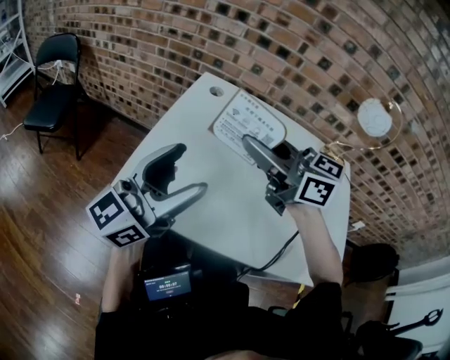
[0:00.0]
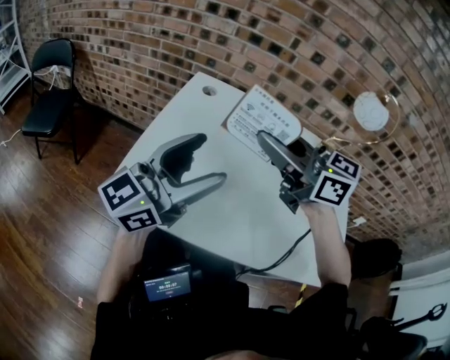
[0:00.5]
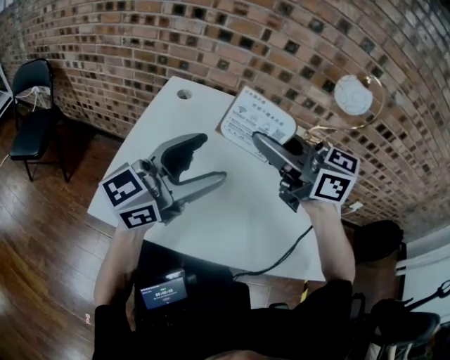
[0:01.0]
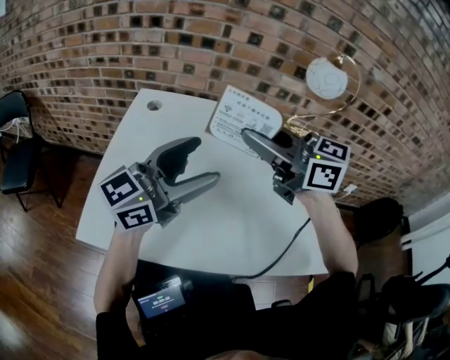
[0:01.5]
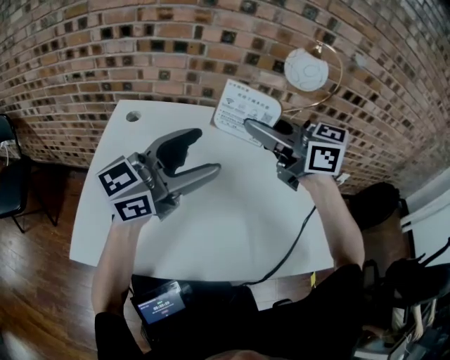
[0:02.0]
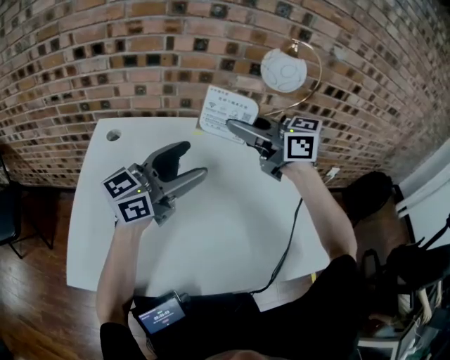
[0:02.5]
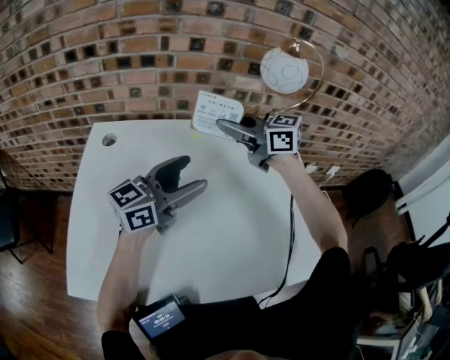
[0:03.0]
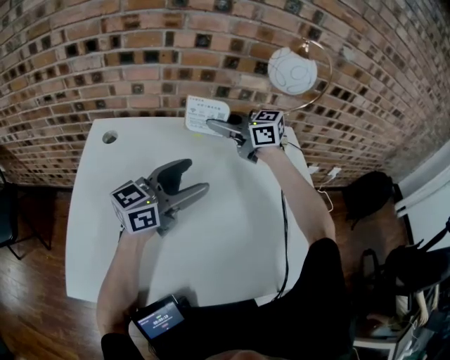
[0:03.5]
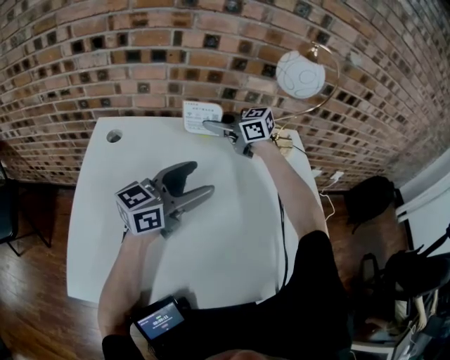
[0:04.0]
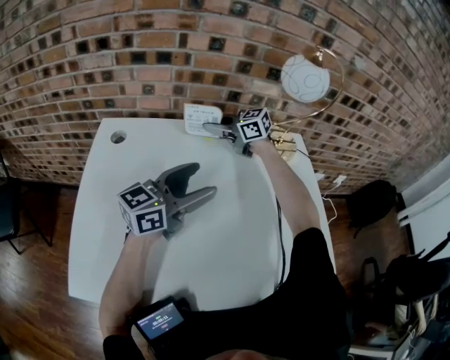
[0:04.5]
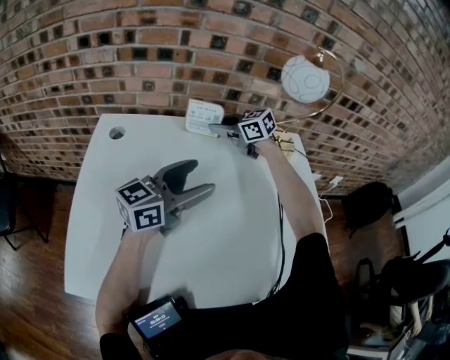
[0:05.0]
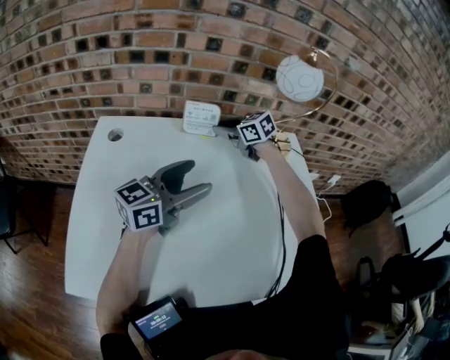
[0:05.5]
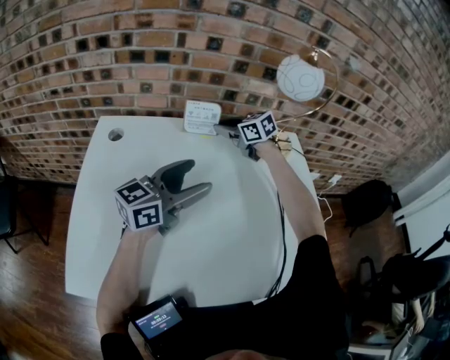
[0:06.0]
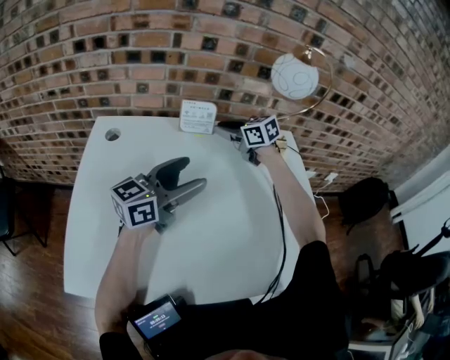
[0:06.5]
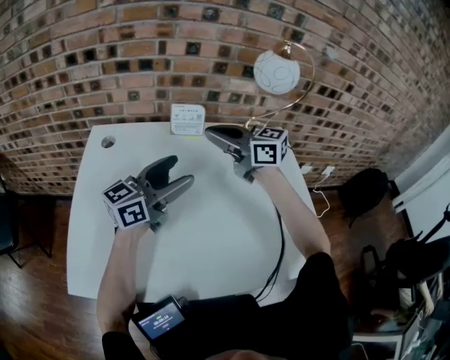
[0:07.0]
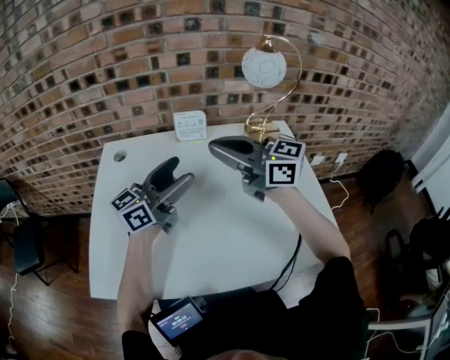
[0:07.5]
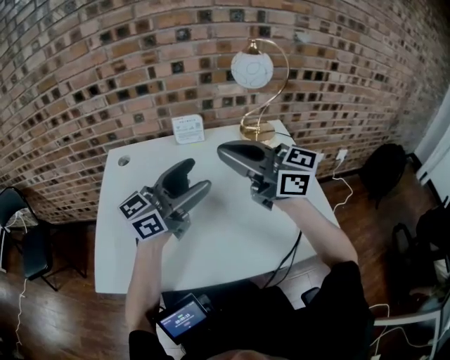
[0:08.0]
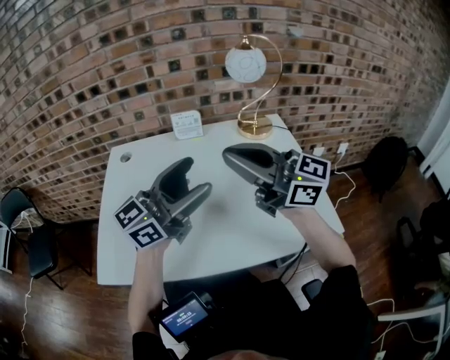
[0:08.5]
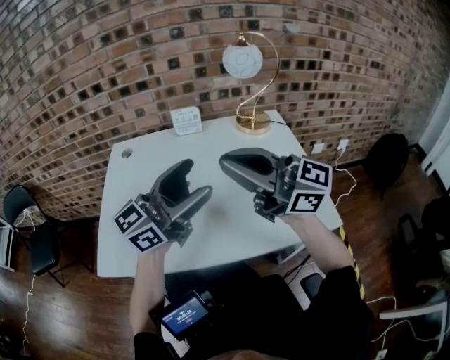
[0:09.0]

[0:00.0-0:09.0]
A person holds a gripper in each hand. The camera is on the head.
0:00.0 to 0:02.0: The right gripper is displaced to the right by roughly 20 cm, while the left gripper is displaced to the right and forward by about 20 cm, and swivels approximately 30 degrees.
0:02.0 to 0:04.5: The right gripper moves some 30 cm; the left gripper moves downward, approximately 10 cm.
0:04.5 to 0:07.0: The right gripper shifts by about 20 cm, and opens and closes again.
0:07.0 to 0:09.0: The left gripper changes place by some 20 cm; the right gripper ends up some 30 cm from where it was, and turns by about 20 degrees.

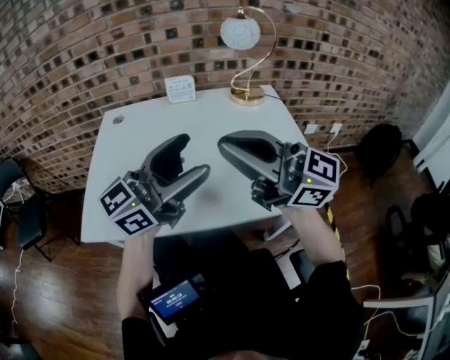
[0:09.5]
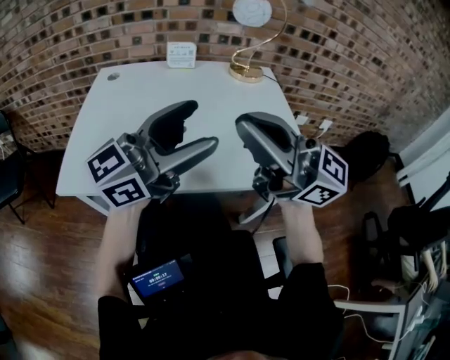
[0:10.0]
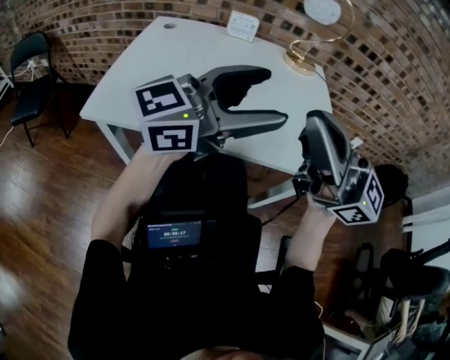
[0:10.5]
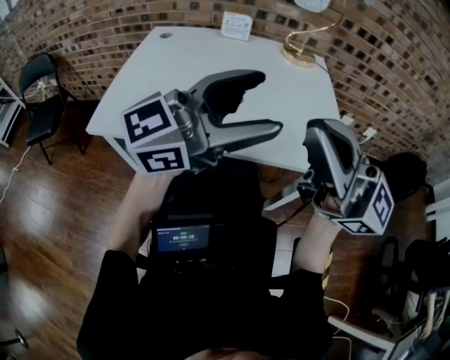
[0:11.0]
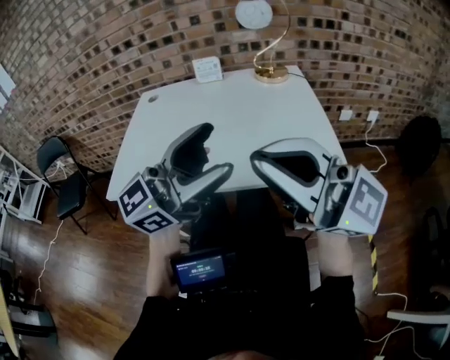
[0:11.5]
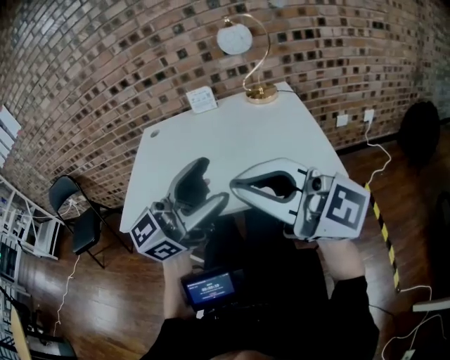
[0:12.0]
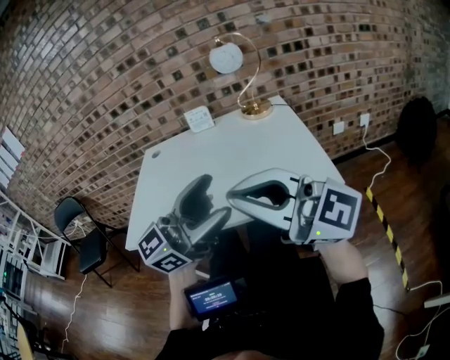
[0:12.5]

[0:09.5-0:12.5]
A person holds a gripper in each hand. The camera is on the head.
0:09.5 to 0:11.0: The left gripper shifts by approximately 10 cm, while the right gripper shifts by some 15 cm.
0:11.0 to 0:12.5: The grippers stay close to where they were, moving slightly.

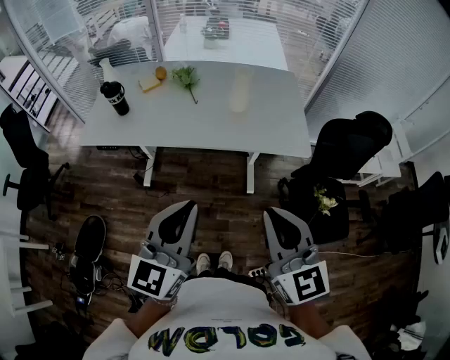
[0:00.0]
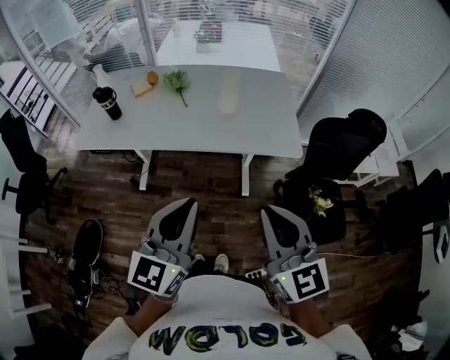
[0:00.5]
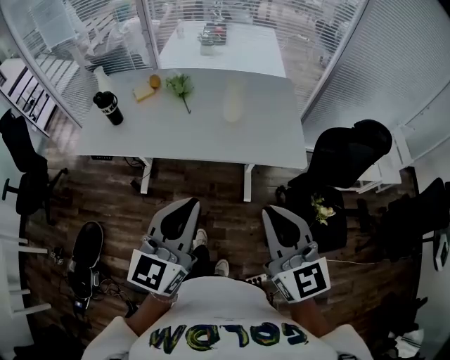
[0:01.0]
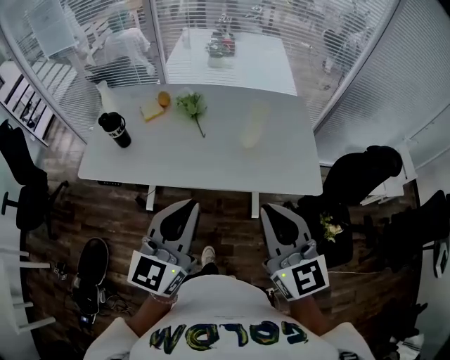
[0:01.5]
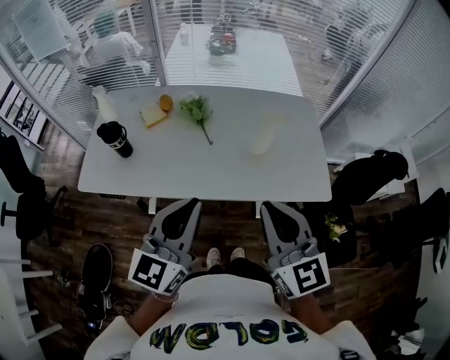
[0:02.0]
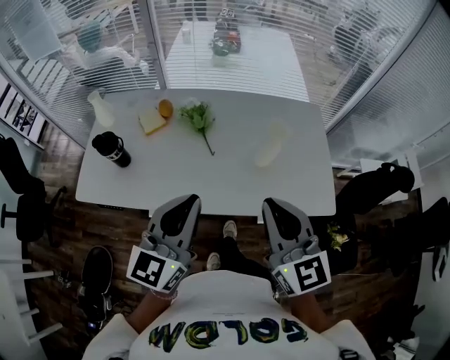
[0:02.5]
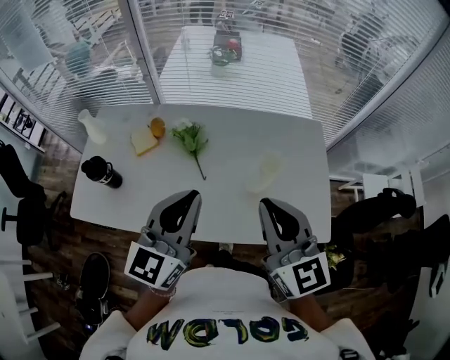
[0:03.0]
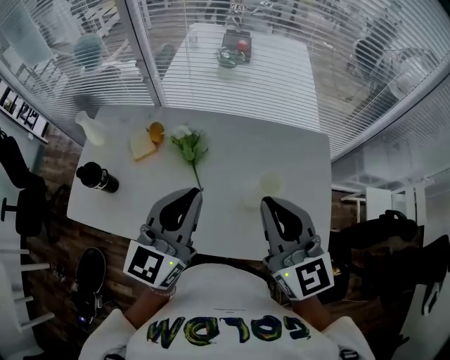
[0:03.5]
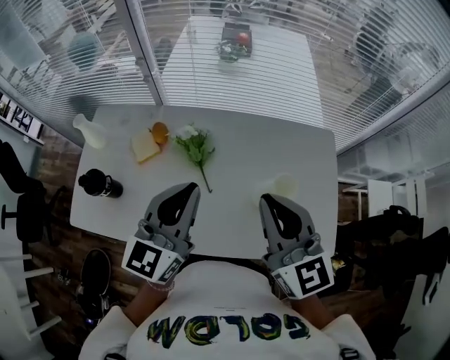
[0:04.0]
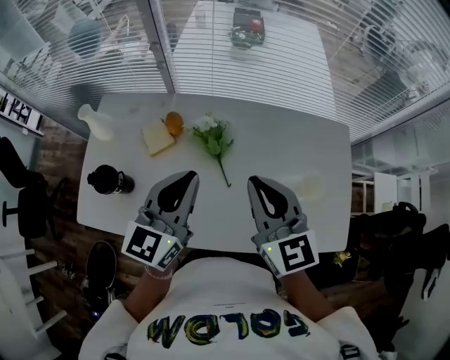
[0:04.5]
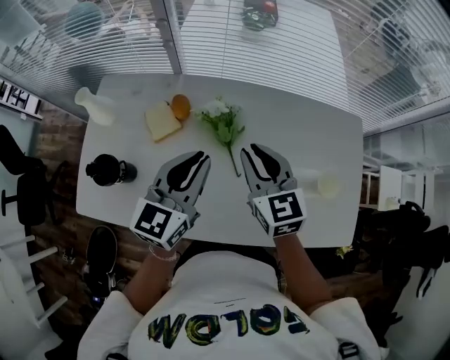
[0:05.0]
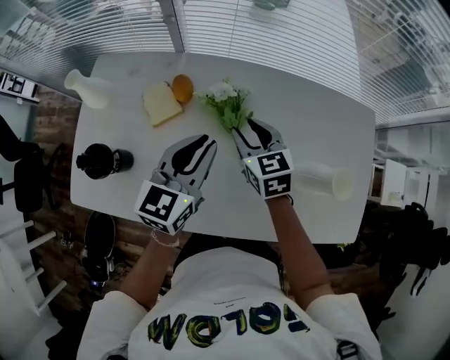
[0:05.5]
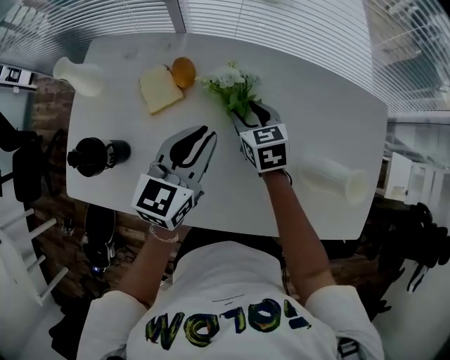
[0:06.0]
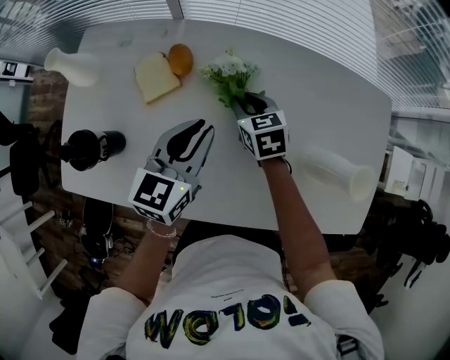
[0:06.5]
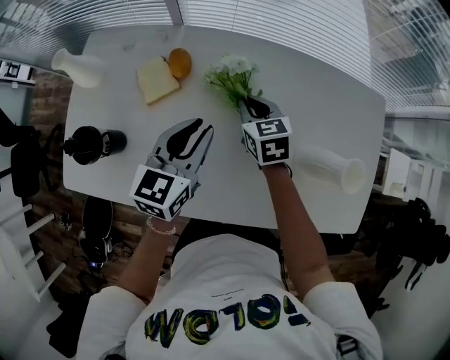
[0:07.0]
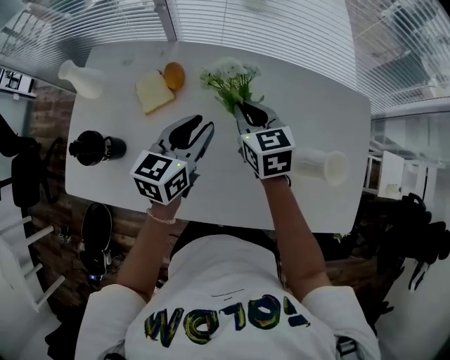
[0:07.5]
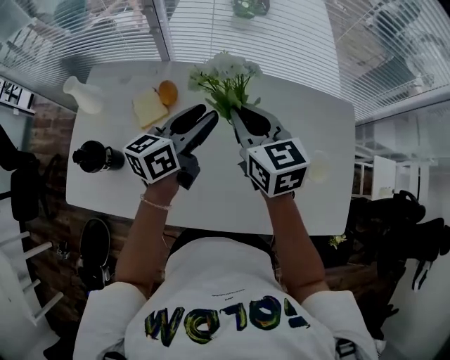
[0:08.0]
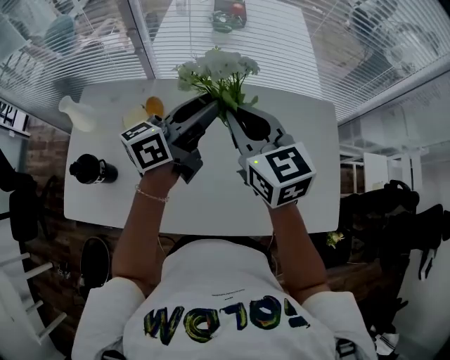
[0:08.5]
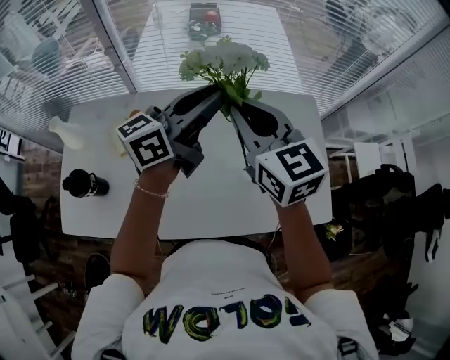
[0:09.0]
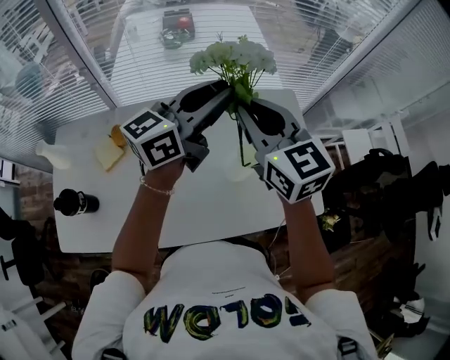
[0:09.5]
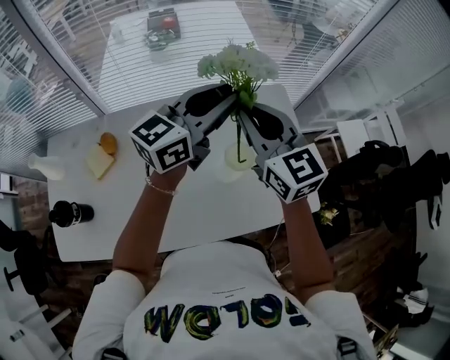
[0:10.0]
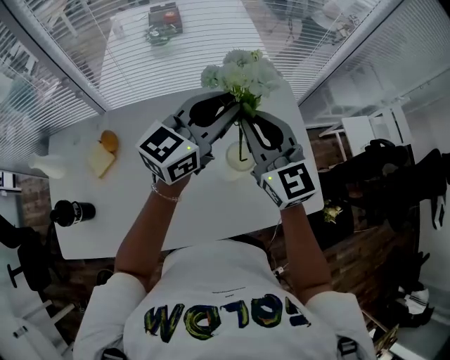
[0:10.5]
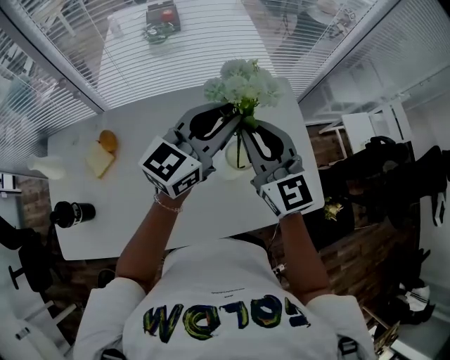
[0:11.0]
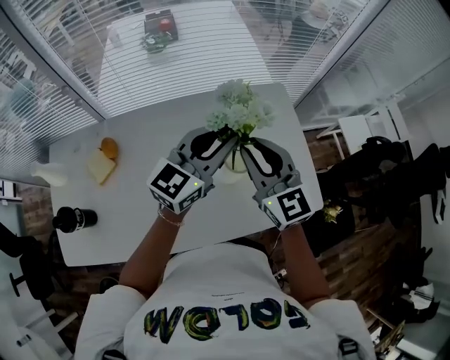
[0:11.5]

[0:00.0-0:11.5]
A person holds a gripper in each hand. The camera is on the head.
0:00.0 to 0:02.0: The left gripper goes approximately 25 cm forward; the right gripper travels forward and to the left by approximately 25 cm.
0:02.0 to 0:04.0: The grippers both shift forward by approximately 30 cm.
0:04.0 to 0:06.0: The left gripper shifts approximately 25 cm downward, forward and to the left. The right gripper heads downward, forward and to the left, covering some 40 cm, tilts its fingers about 40 degrees downward, and opens its fingers.
0:06.0 to 0:07.5: The right gripper is displaced upward by roughly 10 cm, and closes.
0:07.5 to 0:09.5: The grippers both shift upward and to the right by about 35 cm. The right gripper swivels about 30 degrees, while the left gripper tips its fingers upward by about 30 degrees.
0:09.5 to 0:11.5: The grippers both shift downward and to the right by some 10 cm.

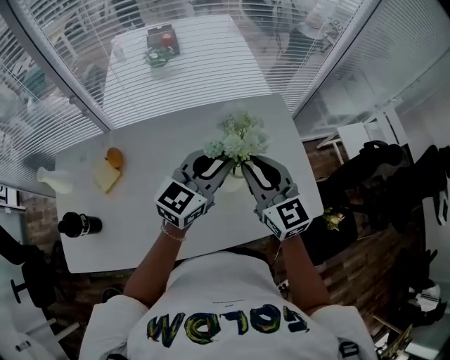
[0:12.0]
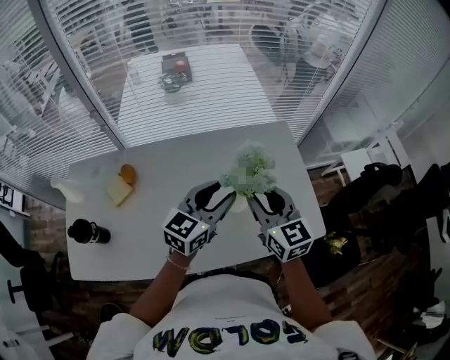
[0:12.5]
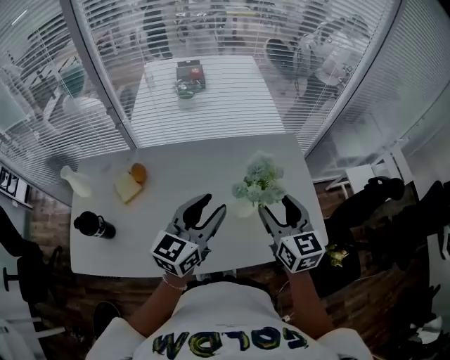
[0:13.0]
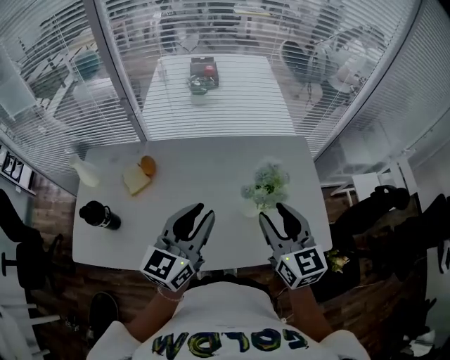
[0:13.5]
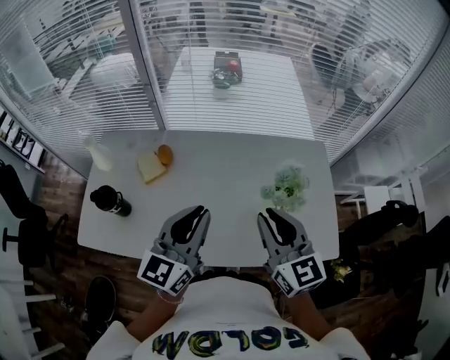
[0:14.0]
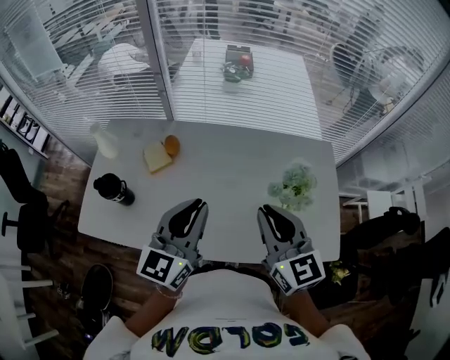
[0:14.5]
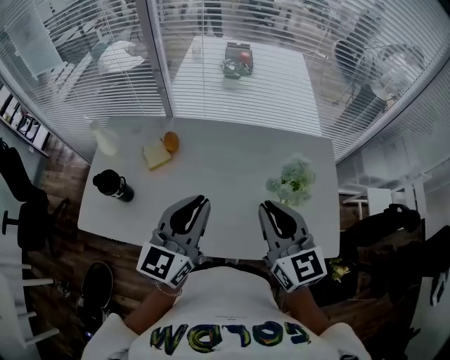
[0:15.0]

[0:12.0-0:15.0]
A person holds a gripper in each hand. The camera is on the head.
0:12.0 to 0:13.5: The right gripper moves backward, some 10 cm, and opens its fingers, while the left gripper goes some 20 cm backward and to the left, and turns by about 30 degrees.
0:13.5 to 0:15.0: The grippers both shift to the left by some 5 cm. The right gripper closes.
